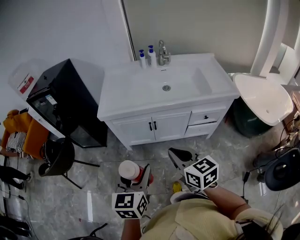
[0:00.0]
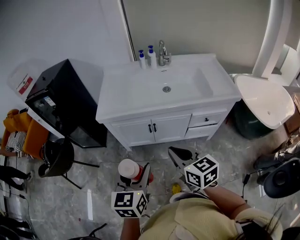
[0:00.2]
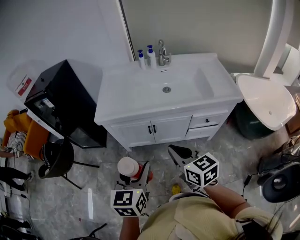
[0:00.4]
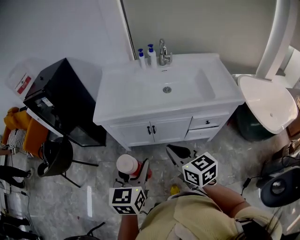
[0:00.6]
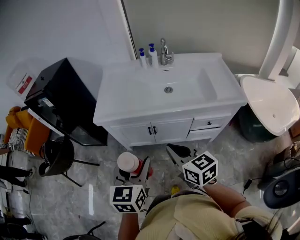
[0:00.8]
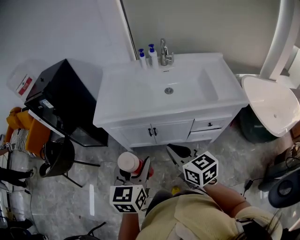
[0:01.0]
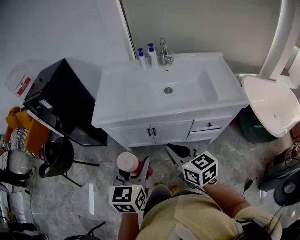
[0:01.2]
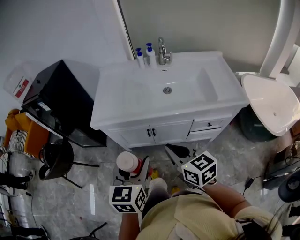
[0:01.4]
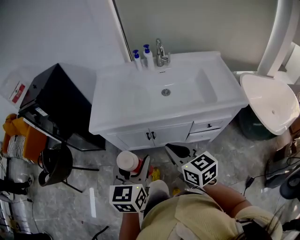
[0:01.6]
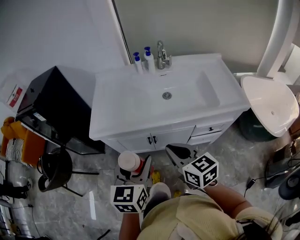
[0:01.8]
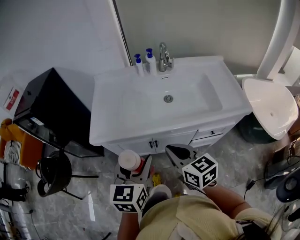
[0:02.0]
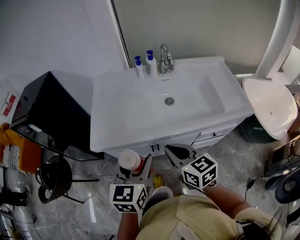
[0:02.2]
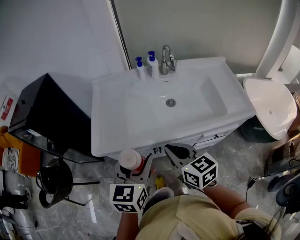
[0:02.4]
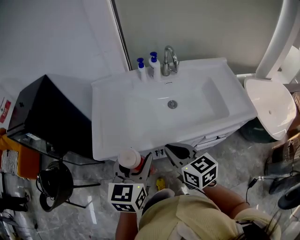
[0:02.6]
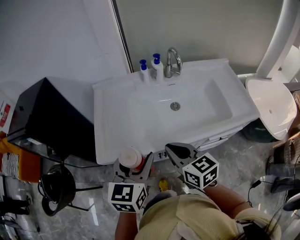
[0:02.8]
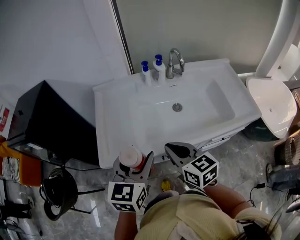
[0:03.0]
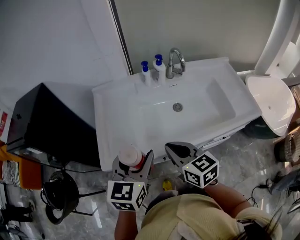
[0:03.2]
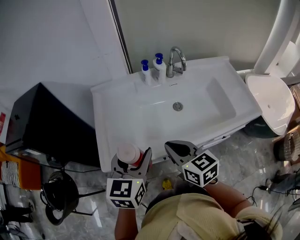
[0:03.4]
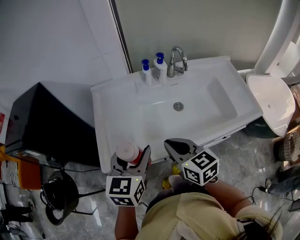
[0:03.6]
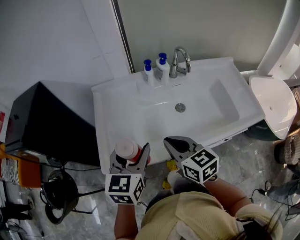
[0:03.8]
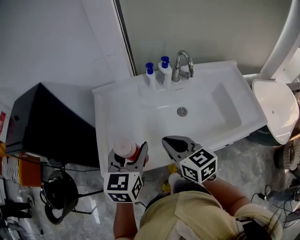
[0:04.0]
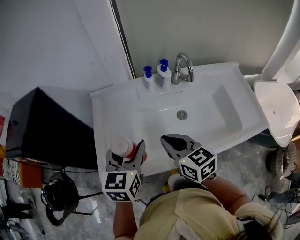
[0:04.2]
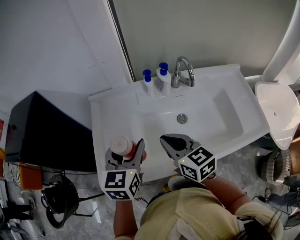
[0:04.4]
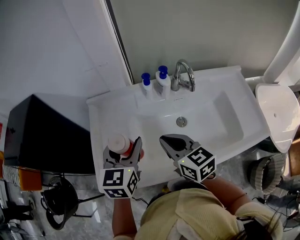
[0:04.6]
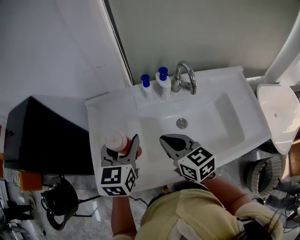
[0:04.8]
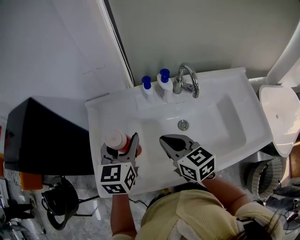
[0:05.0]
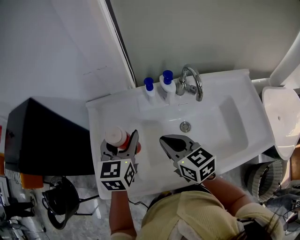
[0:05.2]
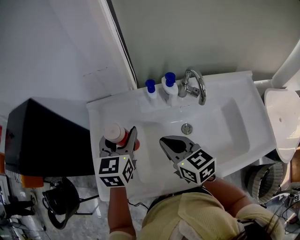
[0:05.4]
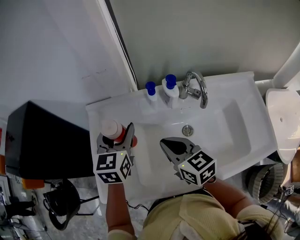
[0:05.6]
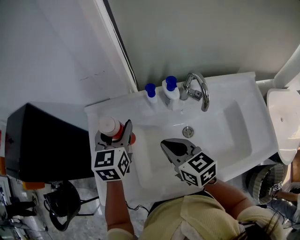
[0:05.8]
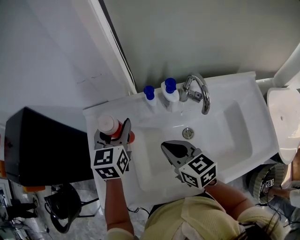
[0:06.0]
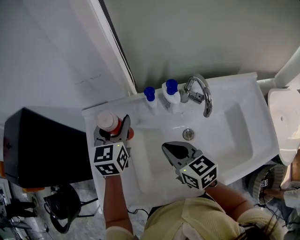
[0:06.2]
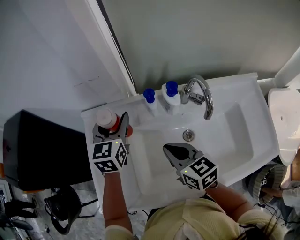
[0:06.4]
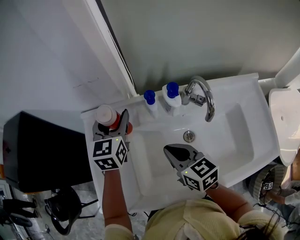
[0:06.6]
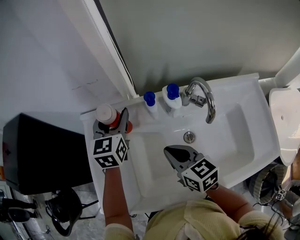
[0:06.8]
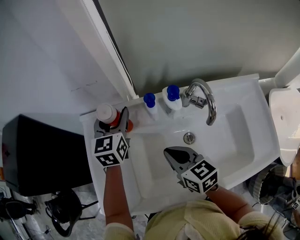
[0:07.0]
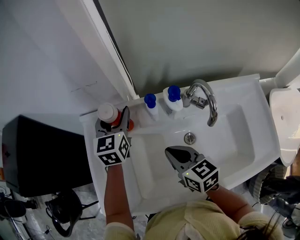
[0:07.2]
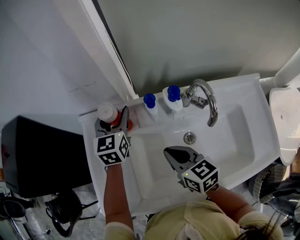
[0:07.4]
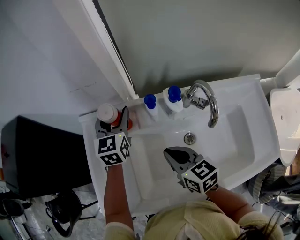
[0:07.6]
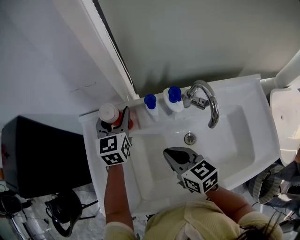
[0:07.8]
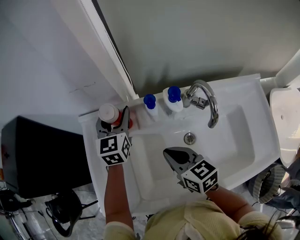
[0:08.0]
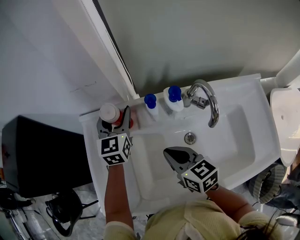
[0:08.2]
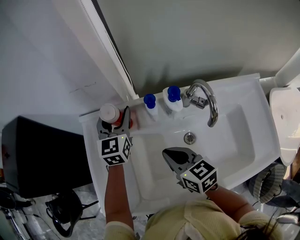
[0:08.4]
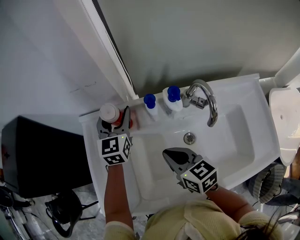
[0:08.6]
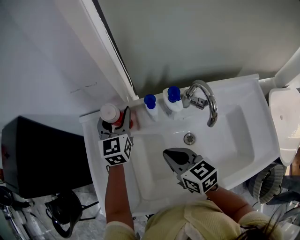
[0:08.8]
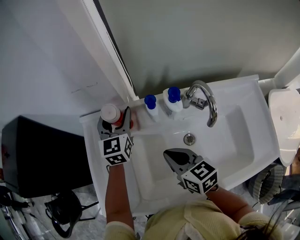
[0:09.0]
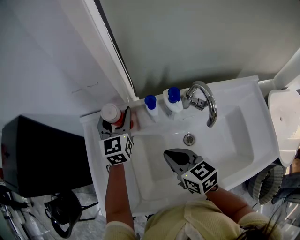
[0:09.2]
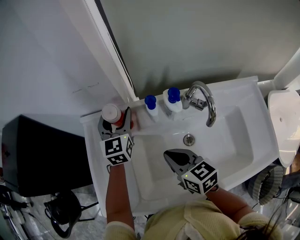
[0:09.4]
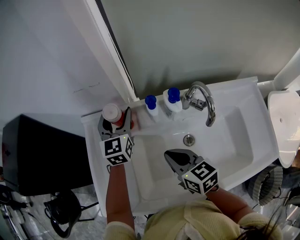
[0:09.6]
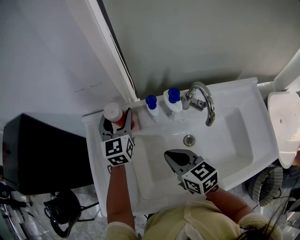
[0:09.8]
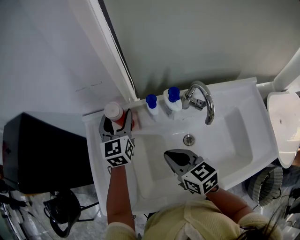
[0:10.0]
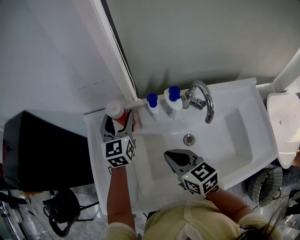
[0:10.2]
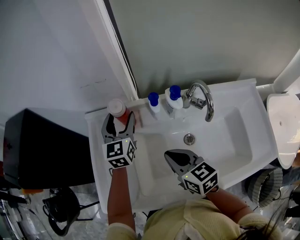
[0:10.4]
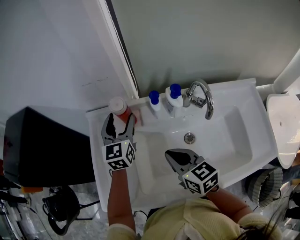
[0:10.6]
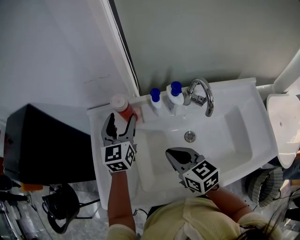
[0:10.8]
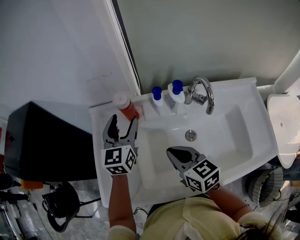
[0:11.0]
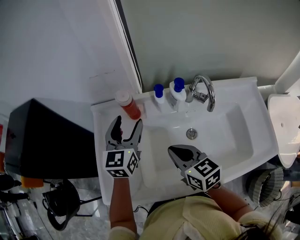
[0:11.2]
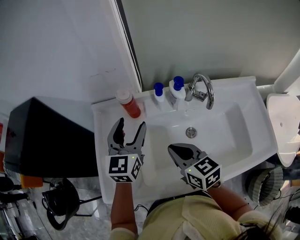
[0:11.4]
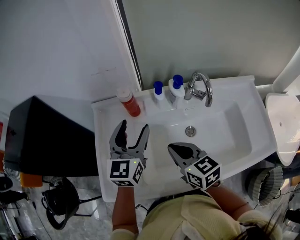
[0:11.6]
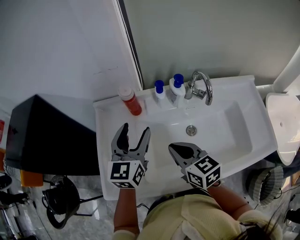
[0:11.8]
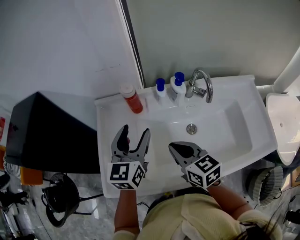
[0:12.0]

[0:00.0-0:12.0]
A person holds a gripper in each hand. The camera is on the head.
0:00.0 to 0:01.6: The two grippers go roughly 15 cm forward and to the right.
0:01.6 to 0:03.0: The left gripper goes roughly 20 cm forward. The right gripper moves forward and to the left, some 20 cm.
0:03.0 to 0:04.4: Both grippers travel together forward, some 15 cm.
0:04.4 to 0:06.0: The right gripper moves forward, roughly 10 cm. The left gripper heads forward, covering about 20 cm.
0:06.0 to 0:07.6: The left gripper moves forward, roughly 10 cm.
0:07.6 to 0:10.4: The grippers stay close to where they were, moving slightly.
0:10.4 to 0:12.0: The left gripper heads backward, covering approximately 15 cm, while the right gripper changes place by approximately 5 cm.

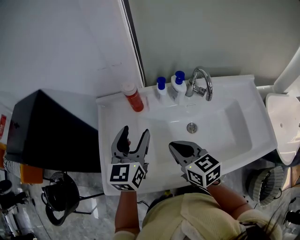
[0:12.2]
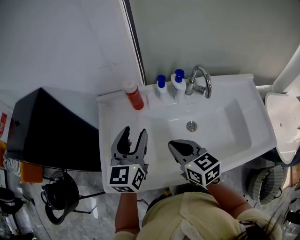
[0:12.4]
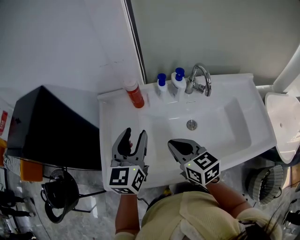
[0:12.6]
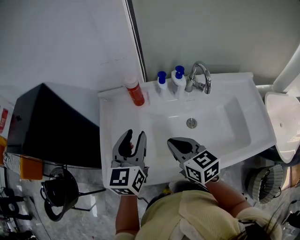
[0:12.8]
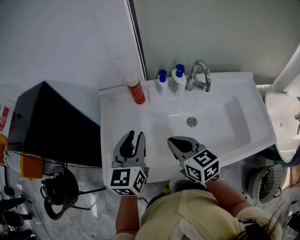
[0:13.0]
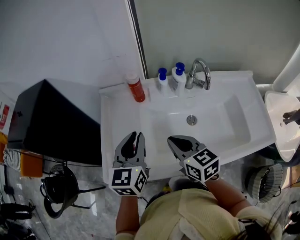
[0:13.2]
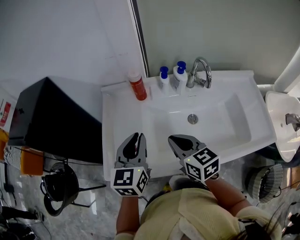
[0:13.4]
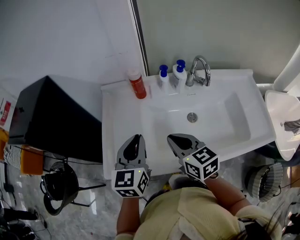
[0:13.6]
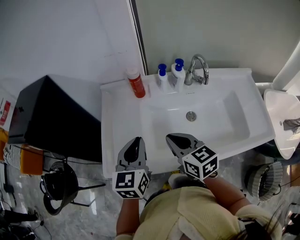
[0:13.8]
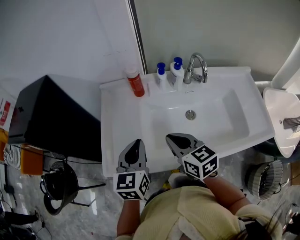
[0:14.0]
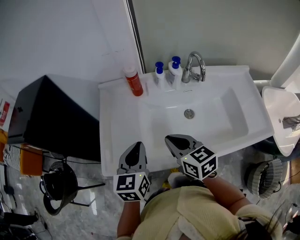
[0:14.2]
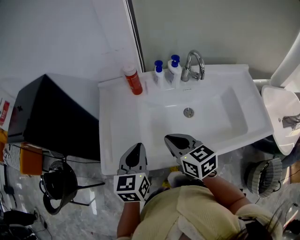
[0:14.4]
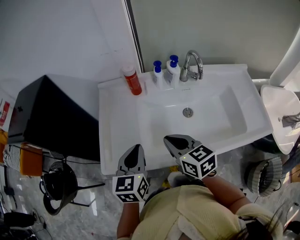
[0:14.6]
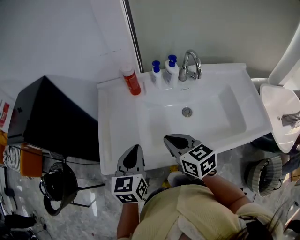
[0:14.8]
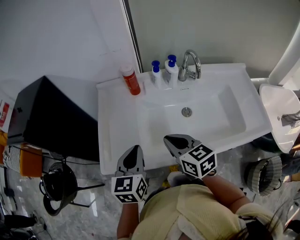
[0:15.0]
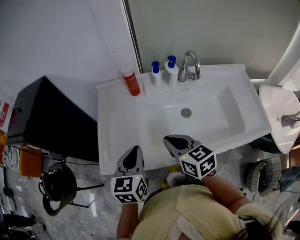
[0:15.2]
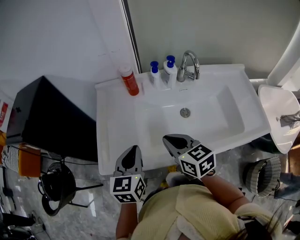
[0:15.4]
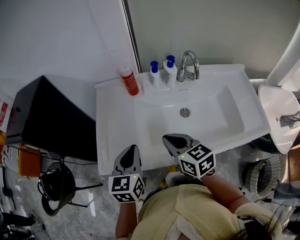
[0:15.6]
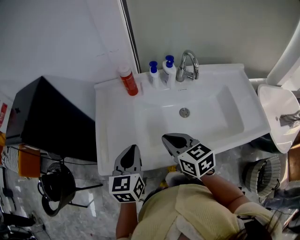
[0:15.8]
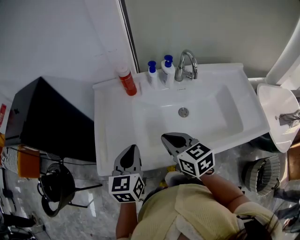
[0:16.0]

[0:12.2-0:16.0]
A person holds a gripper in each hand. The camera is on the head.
0:12.2 to 0:13.4: The left gripper is displaced backward by approximately 10 cm, and closes.
0:13.4 to 0:14.8: The left gripper is displaced backward by about 5 cm.
0:14.8 to 0:16.0: Both grippers stay put.

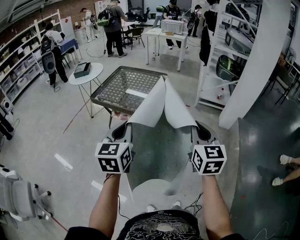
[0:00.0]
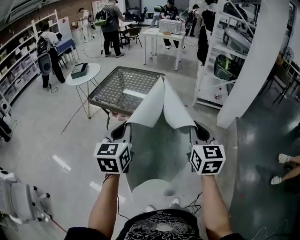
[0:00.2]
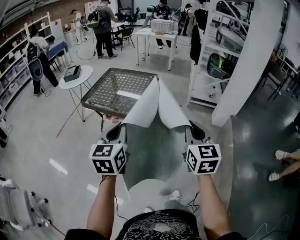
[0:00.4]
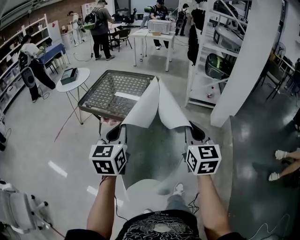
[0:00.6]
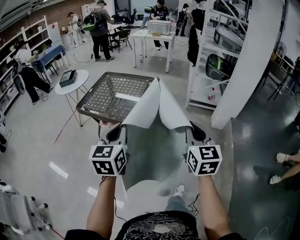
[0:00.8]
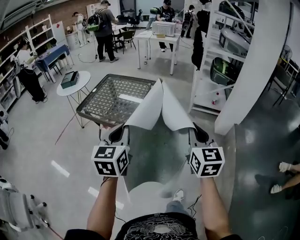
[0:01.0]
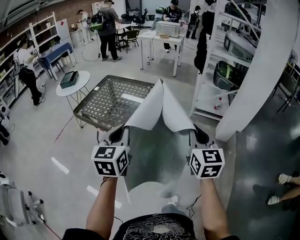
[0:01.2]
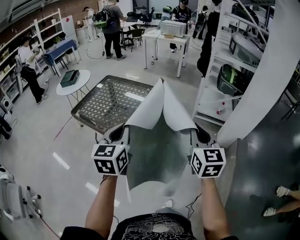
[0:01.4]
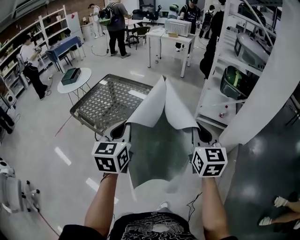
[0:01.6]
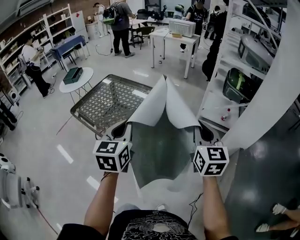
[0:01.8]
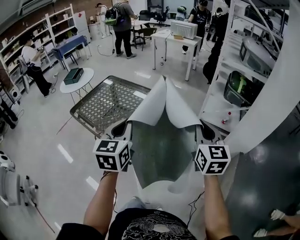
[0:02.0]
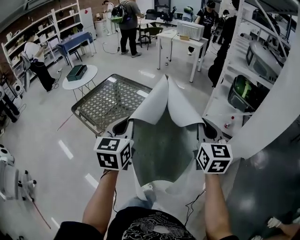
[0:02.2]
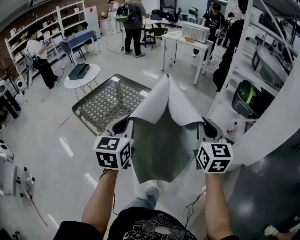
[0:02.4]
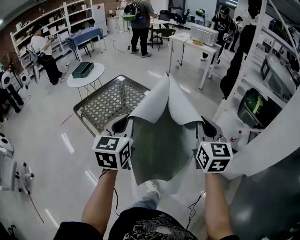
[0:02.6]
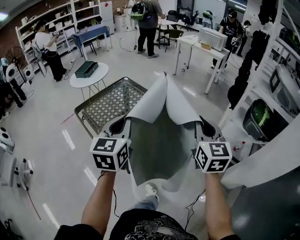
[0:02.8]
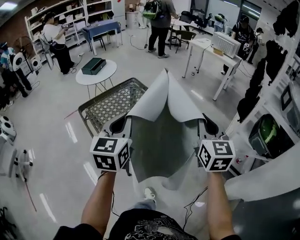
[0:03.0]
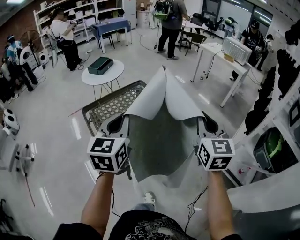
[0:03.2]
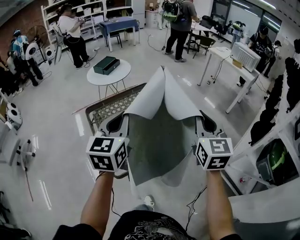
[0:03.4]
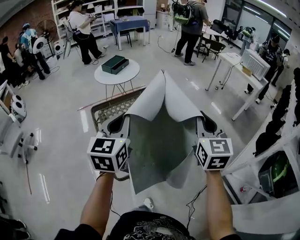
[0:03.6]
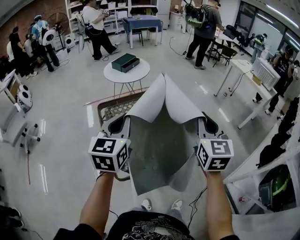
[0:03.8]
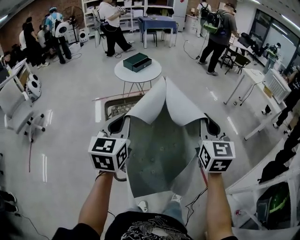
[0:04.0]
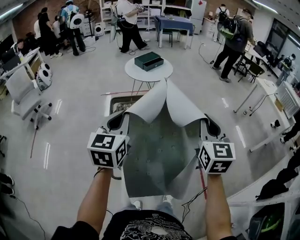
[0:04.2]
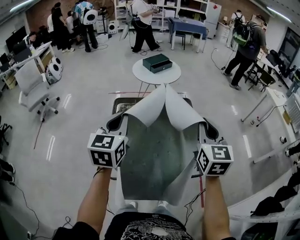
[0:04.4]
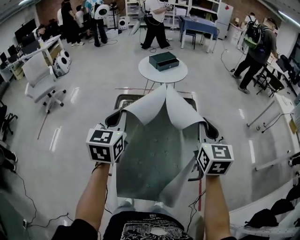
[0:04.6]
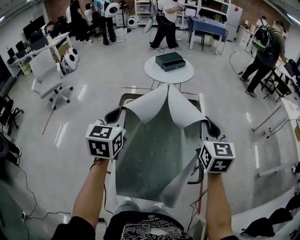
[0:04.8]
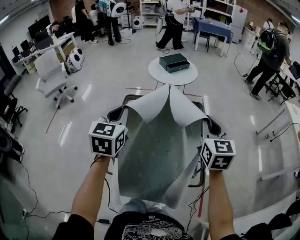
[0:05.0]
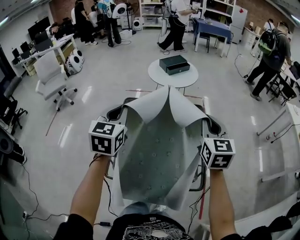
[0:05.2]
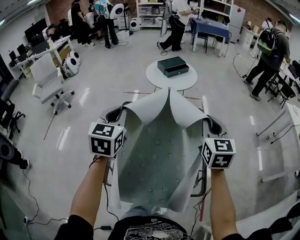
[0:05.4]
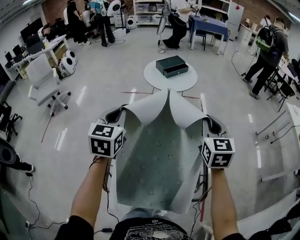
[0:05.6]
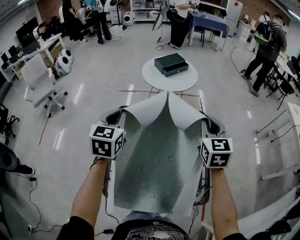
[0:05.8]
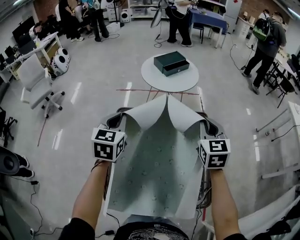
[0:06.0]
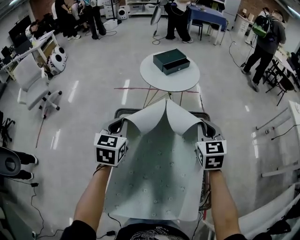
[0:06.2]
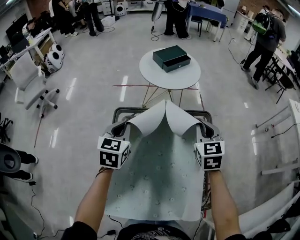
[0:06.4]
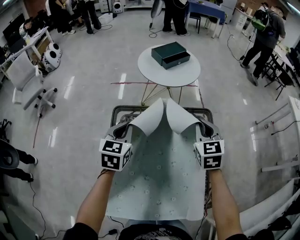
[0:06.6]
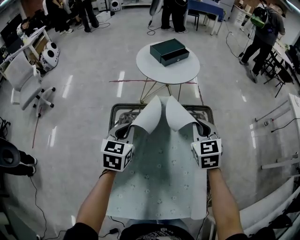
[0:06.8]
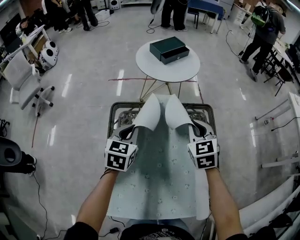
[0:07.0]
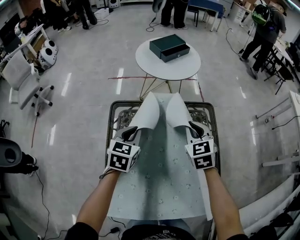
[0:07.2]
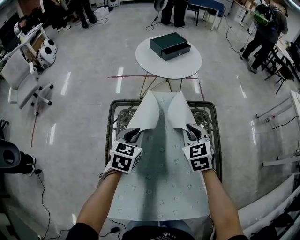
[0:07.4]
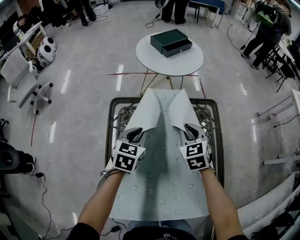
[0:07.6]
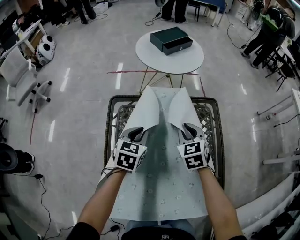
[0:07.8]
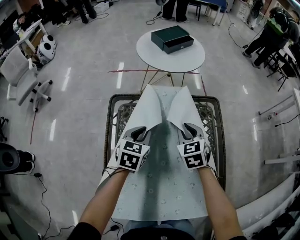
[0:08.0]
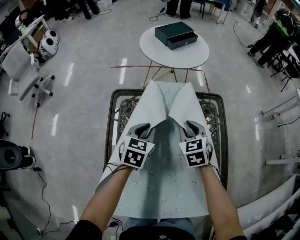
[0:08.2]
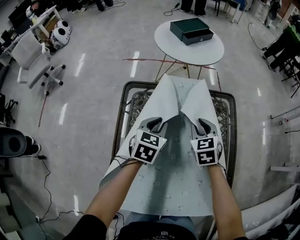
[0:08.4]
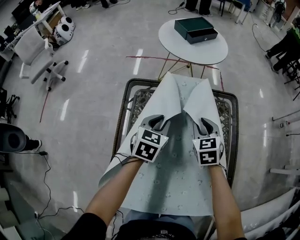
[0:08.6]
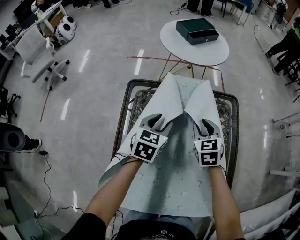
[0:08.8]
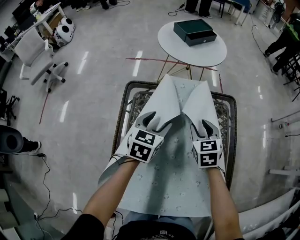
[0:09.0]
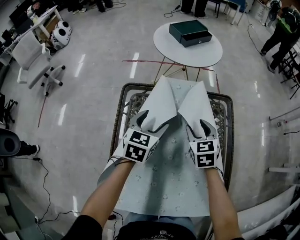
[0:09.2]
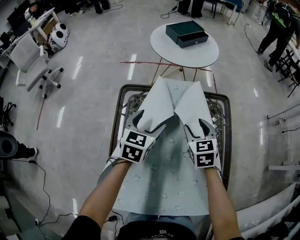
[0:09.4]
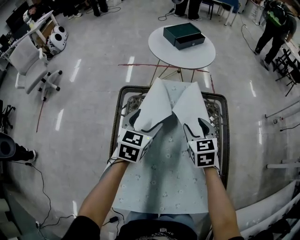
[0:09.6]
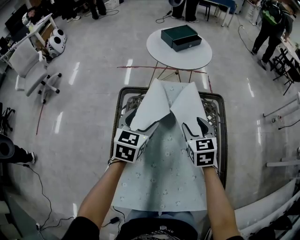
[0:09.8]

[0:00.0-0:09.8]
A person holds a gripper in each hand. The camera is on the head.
0:00.0 to 0:01.4: Both grippers move forward and to the right, some 30 cm.
0:01.4 to 0:02.8: Both grippers move forward, about 25 cm.
0:02.8 to 0:04.2: The left gripper changes place by approximately 25 cm, and swivels about 40 degrees, while the right gripper changes place by some 40 cm, and swivels roughly 40 degrees.
0:04.2 to 0:05.6: The two grippers go about 20 cm forward.
0:05.6 to 0:07.0: The right gripper moves downward, forward and to the left, roughly 20 cm, while the left gripper goes some 20 cm downward and forward.
0:07.0 to 0:08.4: The left gripper shifts about 10 cm downward and to the right; the right gripper heads downward, covering some 10 cm, and opens up.
0:08.4 to 0:09.8: The grippers both shift upward by approximately 5 cm. The left gripper opens its fingers; the right gripper opens.
